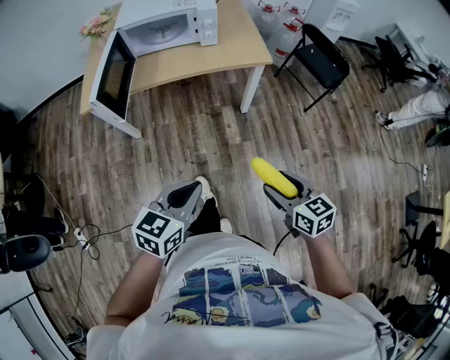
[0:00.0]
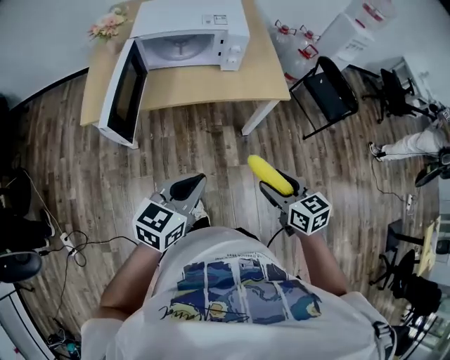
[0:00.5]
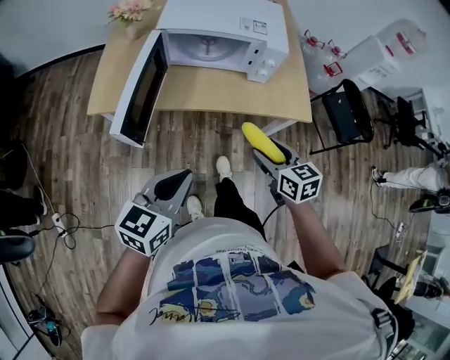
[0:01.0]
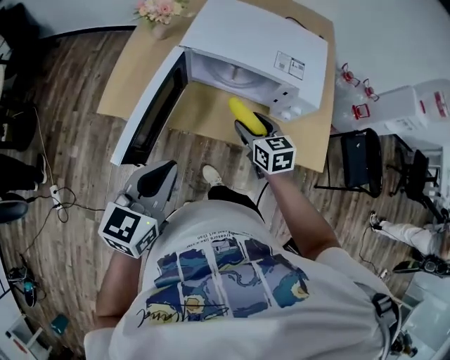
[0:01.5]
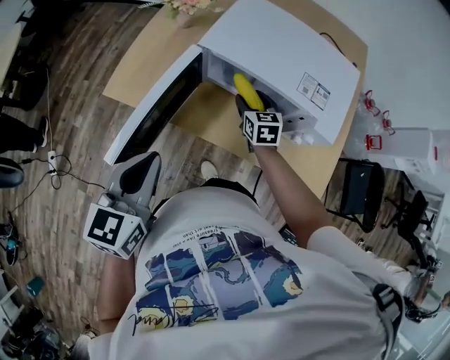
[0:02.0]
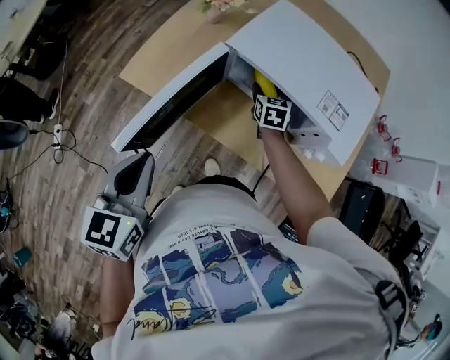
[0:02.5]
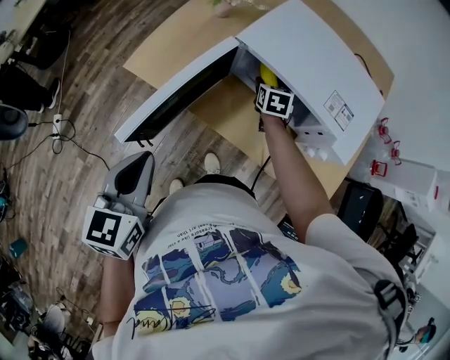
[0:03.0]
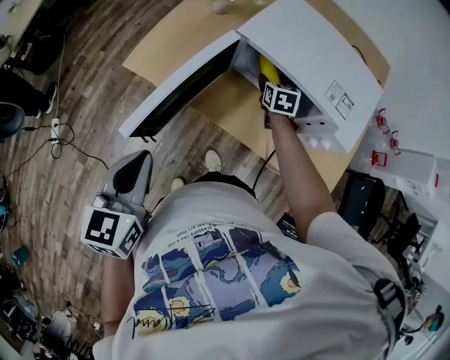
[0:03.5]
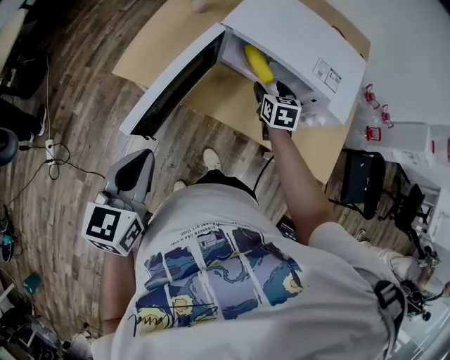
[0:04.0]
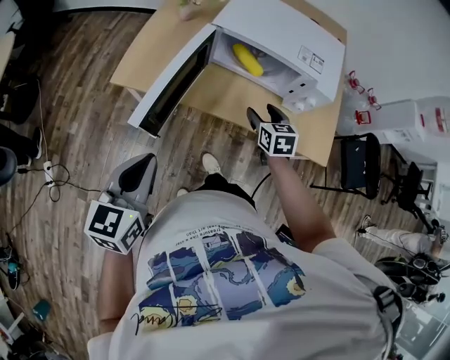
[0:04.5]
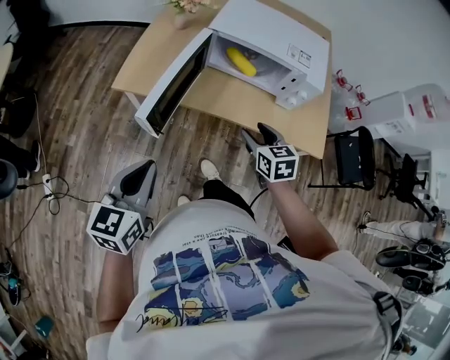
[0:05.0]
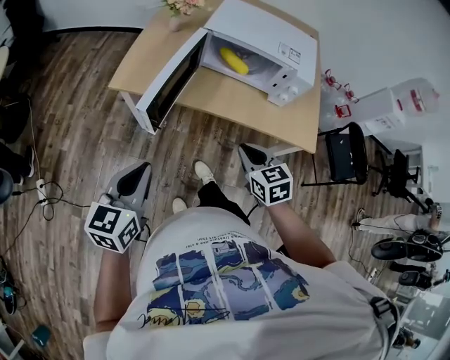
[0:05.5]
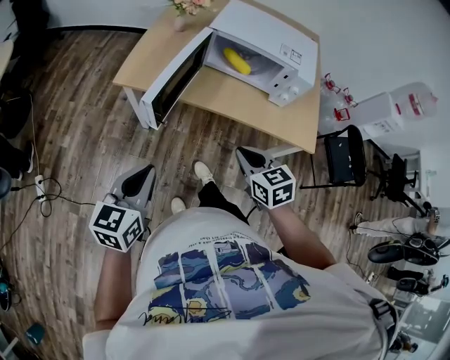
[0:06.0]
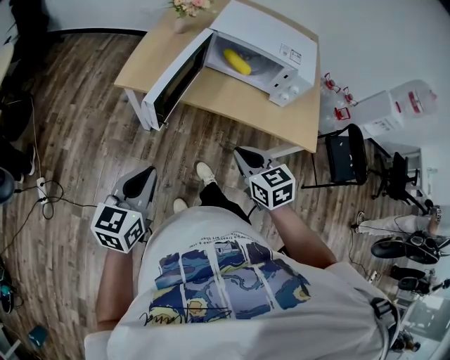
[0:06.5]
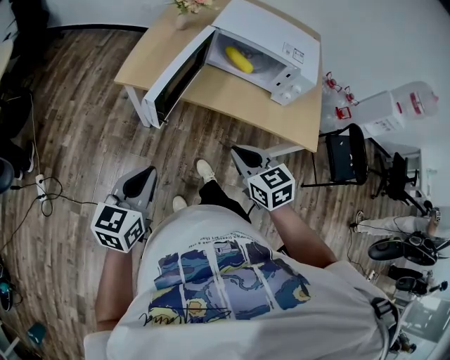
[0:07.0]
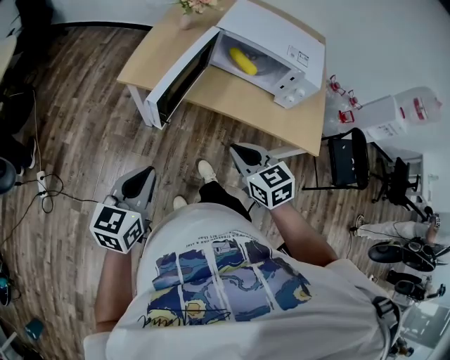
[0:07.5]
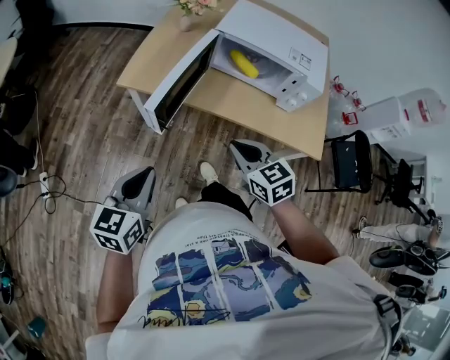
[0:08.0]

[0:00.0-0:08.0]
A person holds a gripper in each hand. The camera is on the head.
0:00.0 to 0:02.0: The two grippers travel together, roughly 60 cm. The right gripper turns by roughly 20 degrees. Meanwhile the left gripper rotates about 50 degrees.
0:02.0 to 0:04.0: The left gripper is displaced backward and to the left by approximately 10 cm; the right gripper goes forward and returns, about 5 cm each way.
0:04.0 to 0:06.0: The left gripper travels backward by about 15 cm. The right gripper goes roughly 35 cm backward, and closes its fingers.
0:06.0 to 0:08.0: The right gripper shifts by some 5 cm.

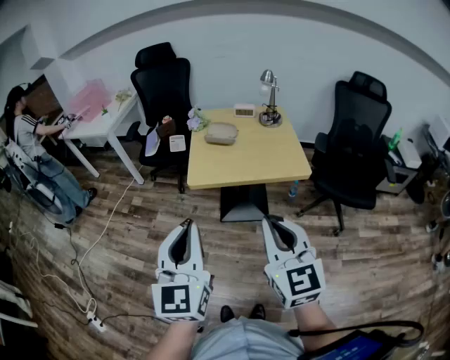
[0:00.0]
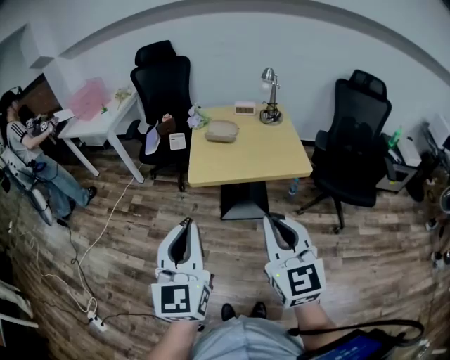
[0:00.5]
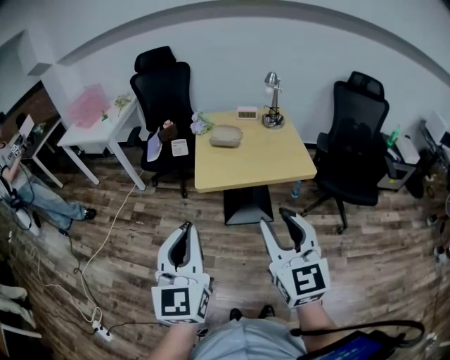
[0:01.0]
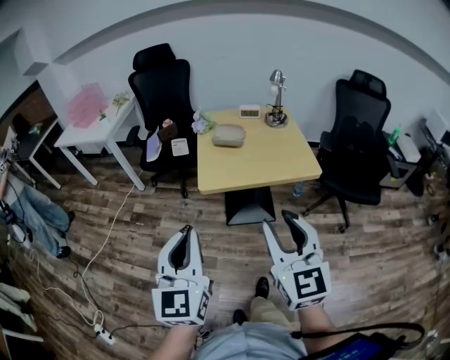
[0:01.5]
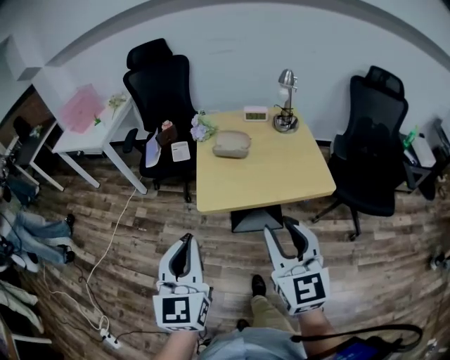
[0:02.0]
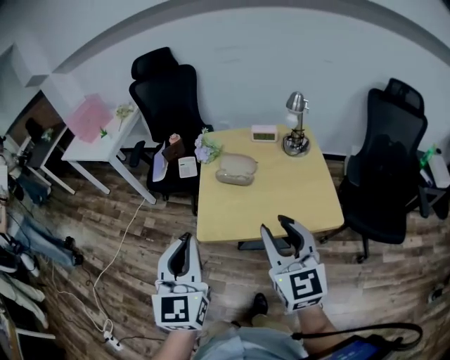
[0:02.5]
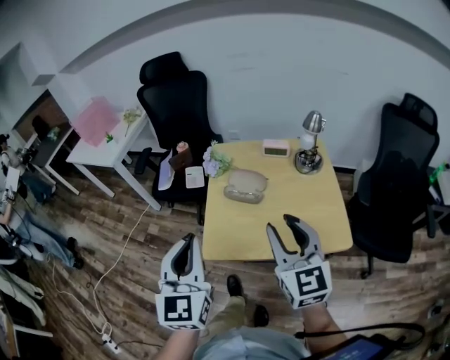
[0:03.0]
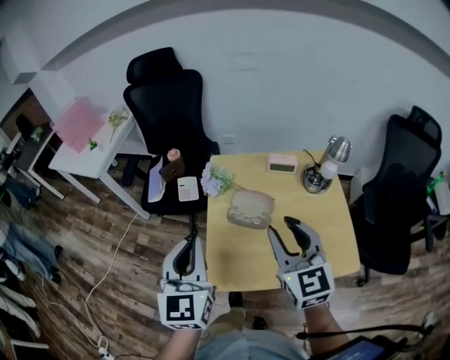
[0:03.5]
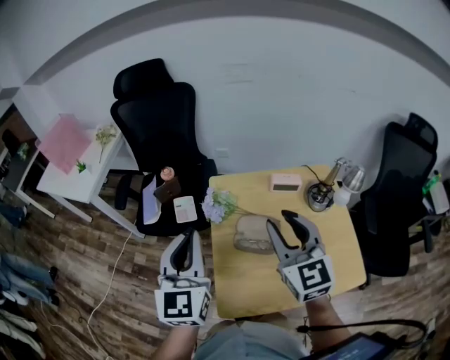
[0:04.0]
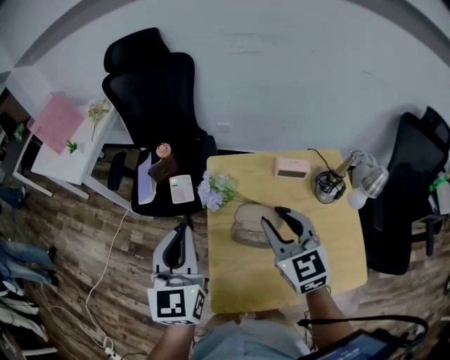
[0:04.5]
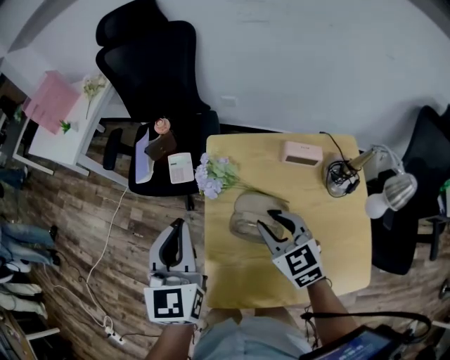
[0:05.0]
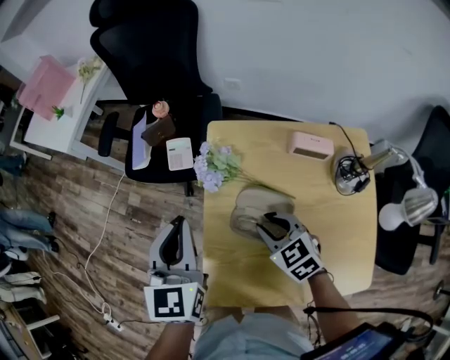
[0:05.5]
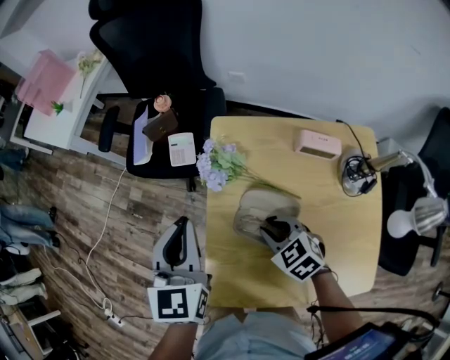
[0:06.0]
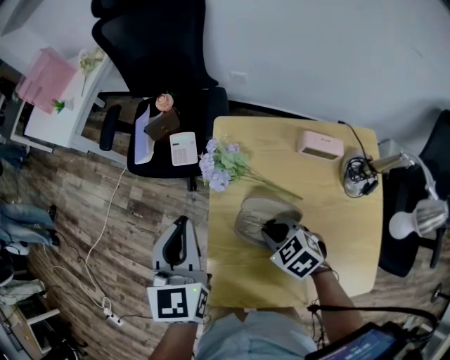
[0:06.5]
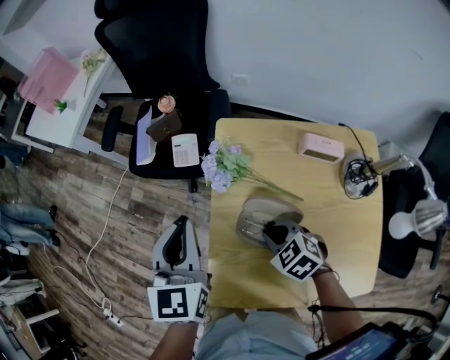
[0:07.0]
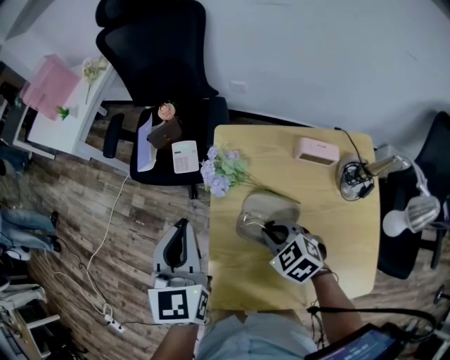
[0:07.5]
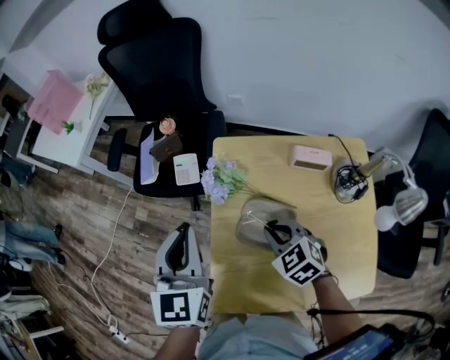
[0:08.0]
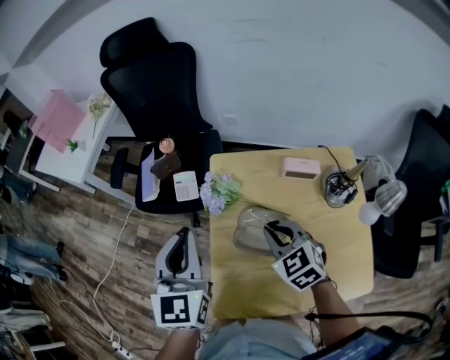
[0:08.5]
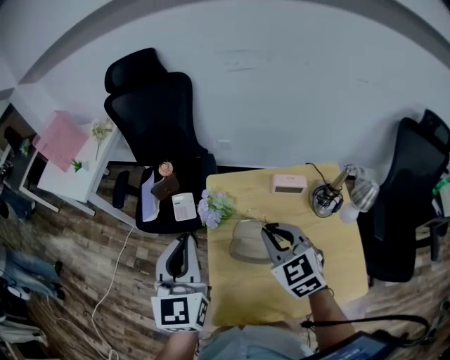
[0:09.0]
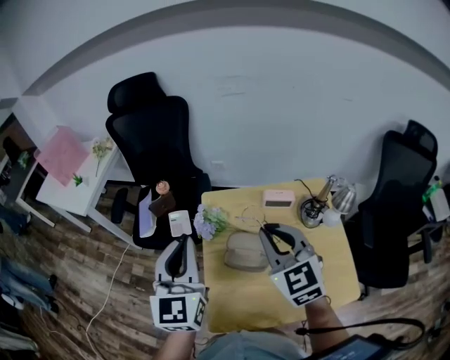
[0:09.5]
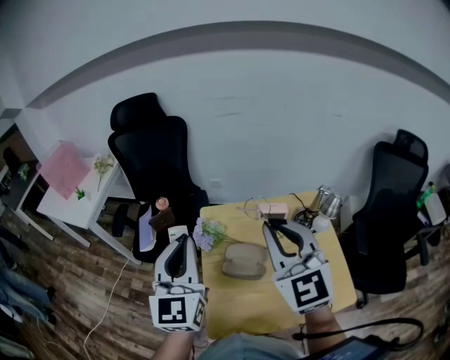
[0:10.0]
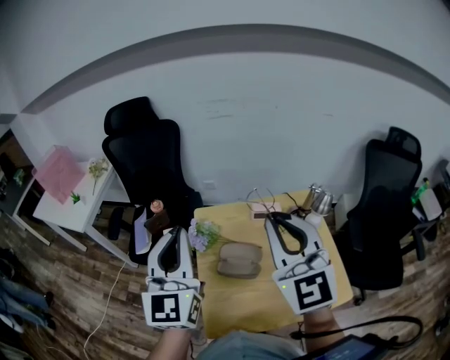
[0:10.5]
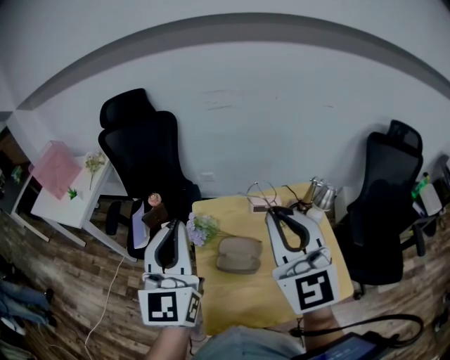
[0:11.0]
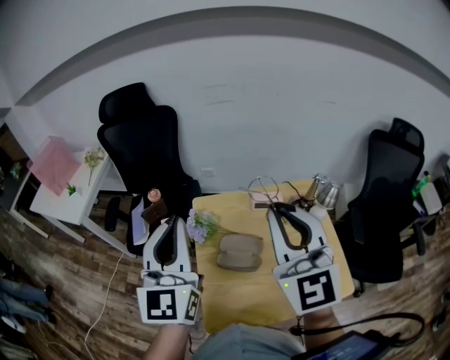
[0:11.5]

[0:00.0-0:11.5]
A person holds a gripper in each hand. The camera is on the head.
0:00.0 to 0:02.0: The two grippers go approximately 15 cm forward. The right gripper opens.
0:02.0 to 0:04.0: Both grippers are carried forward, some 40 cm.
0:04.0 to 0:06.0: The right gripper goes approximately 30 cm downward, and points its fingers roughly 40 degrees further downward, while the left gripper travels downward and forward by some 15 cm, and changes its angle by approximately 20 degrees.
0:06.0 to 0:07.5: The grippers move only a little.
0:07.5 to 0:09.5: The right gripper travels upward by about 25 cm, and points its fingers approximately 40 degrees further upward; the left gripper goes roughly 15 cm upward, and swivels about 20 degrees.
0:09.5 to 0:11.5: The right gripper moves upward, some 15 cm, and swivels approximately 30 degrees, while the left gripper heads upward, covering about 10 cm.

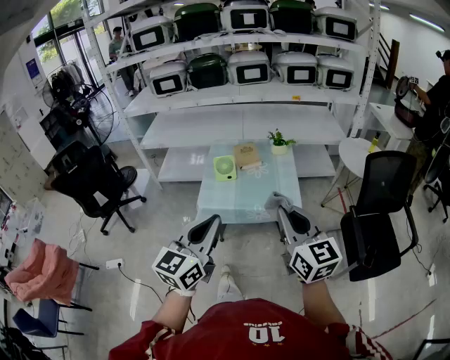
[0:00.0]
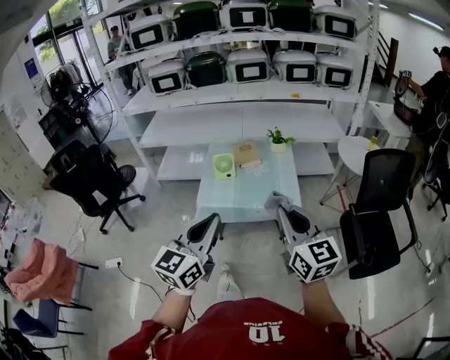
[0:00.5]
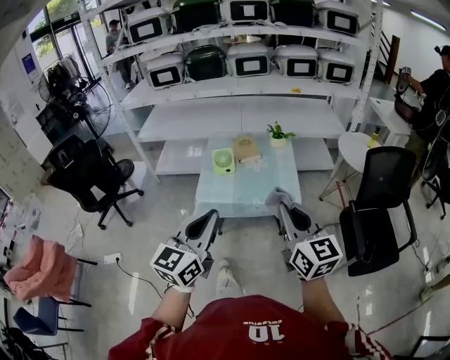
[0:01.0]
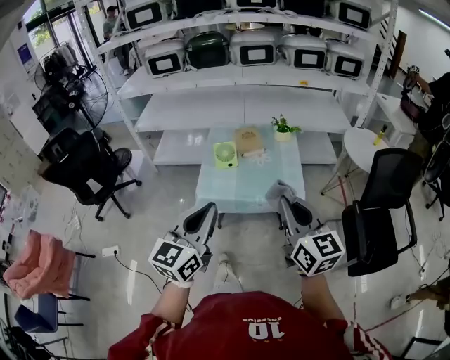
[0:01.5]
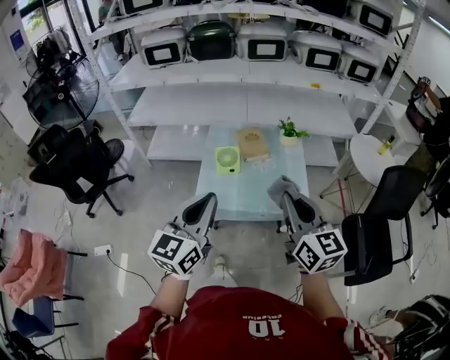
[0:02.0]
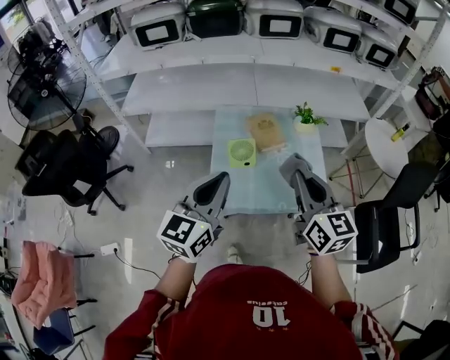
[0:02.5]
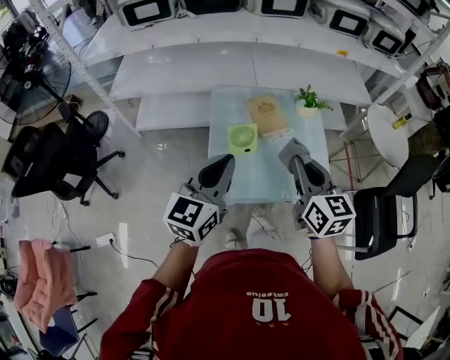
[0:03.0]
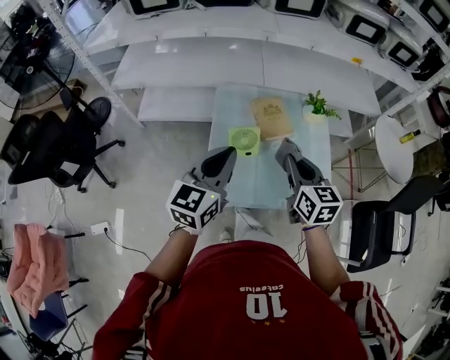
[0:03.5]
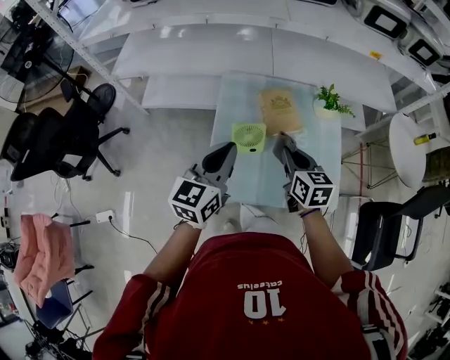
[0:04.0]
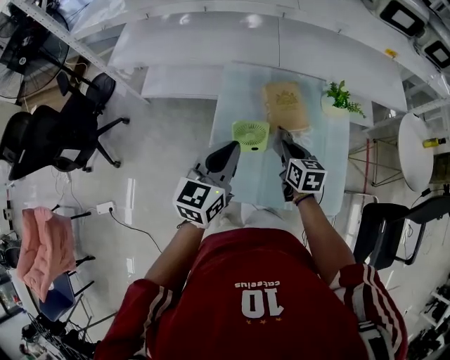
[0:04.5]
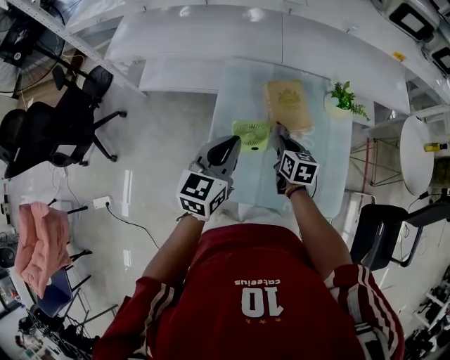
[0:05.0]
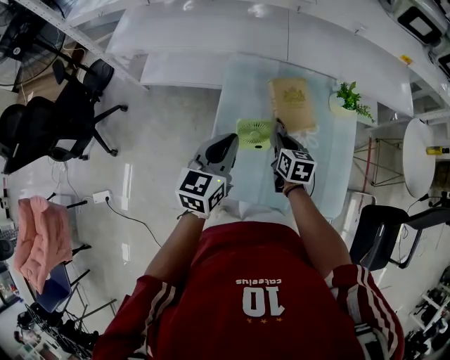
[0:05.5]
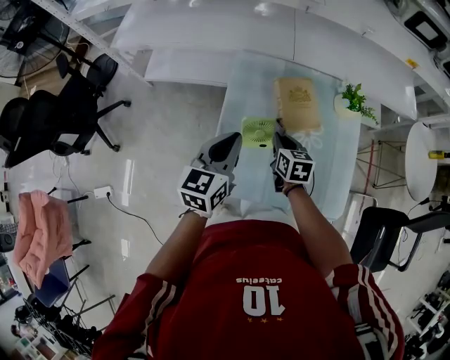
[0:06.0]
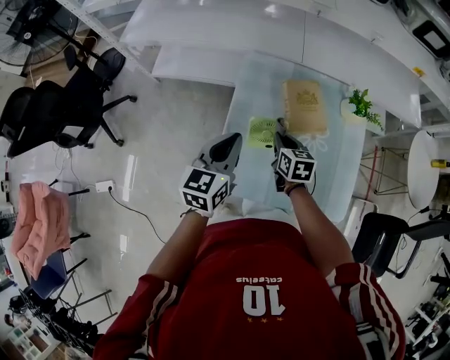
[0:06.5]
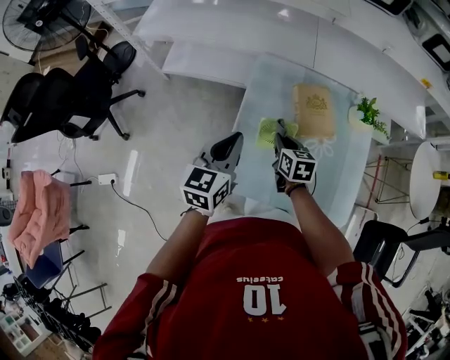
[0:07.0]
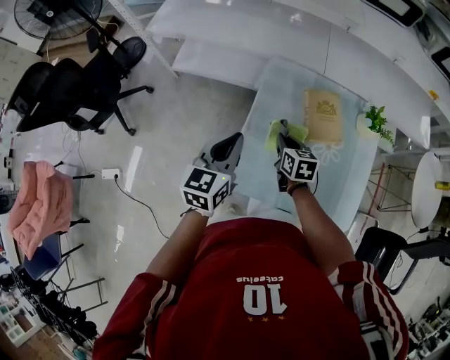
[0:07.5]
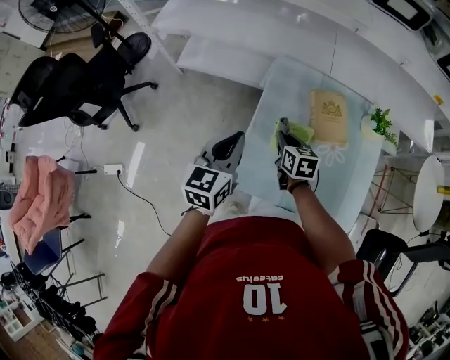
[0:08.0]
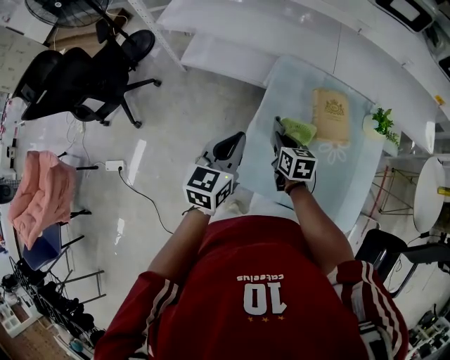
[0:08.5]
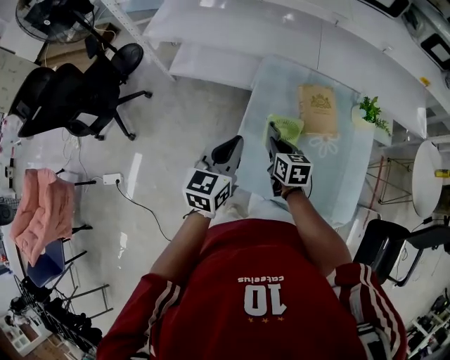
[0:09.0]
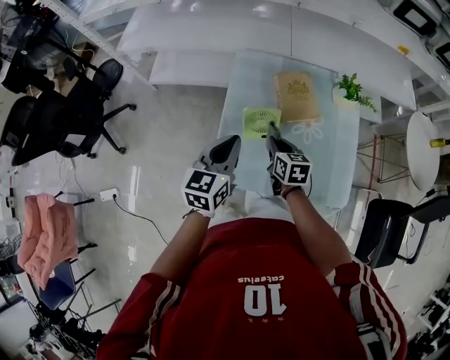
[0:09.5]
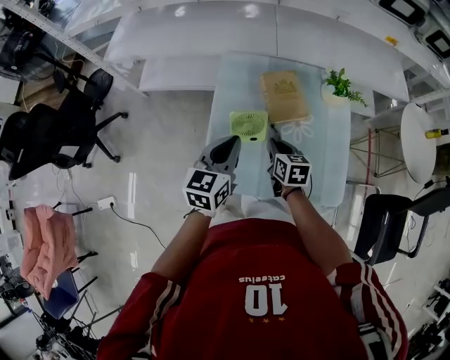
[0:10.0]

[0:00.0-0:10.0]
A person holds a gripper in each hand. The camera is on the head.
0:00.0 to 0:02.0: The left gripper moves forward and to the left, about 20 cm, while the right gripper shifts some 20 cm forward.
0:02.0 to 0:04.0: Both grippers move forward and downward, approximately 35 cm. The right gripper changes its angle by about 30 degrees.
0:04.0 to 0:06.0: The left gripper shifts about 10 cm downward and forward, while the right gripper moves downward and forward, about 15 cm.
0:06.0 to 0:08.0: Both grippers travel together to the left, roughly 10 cm.
0:08.0 to 0:10.0: The left gripper is displaced to the right by approximately 15 cm. Meanwhile the right gripper shifts some 15 cm to the right and backward.
